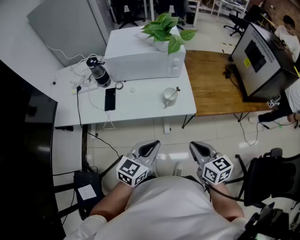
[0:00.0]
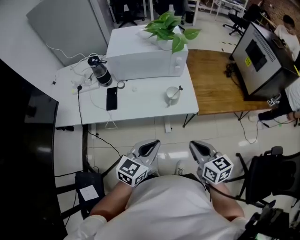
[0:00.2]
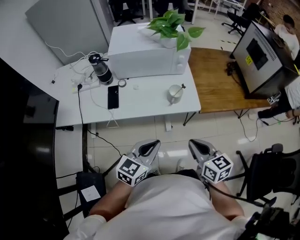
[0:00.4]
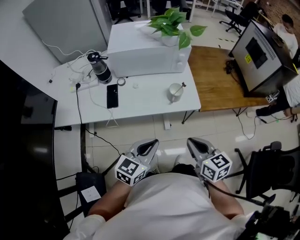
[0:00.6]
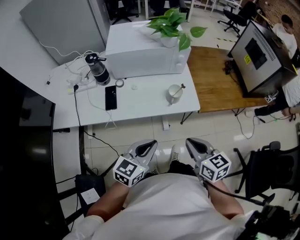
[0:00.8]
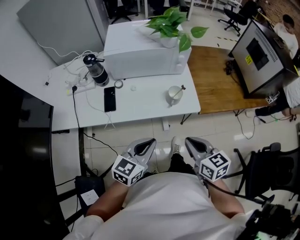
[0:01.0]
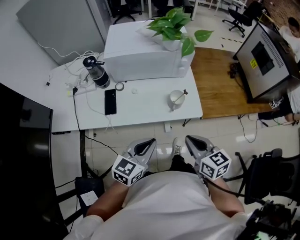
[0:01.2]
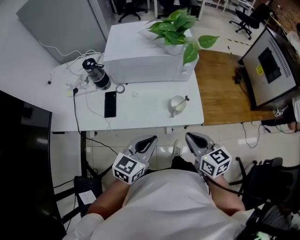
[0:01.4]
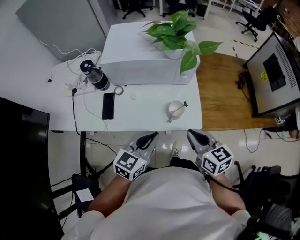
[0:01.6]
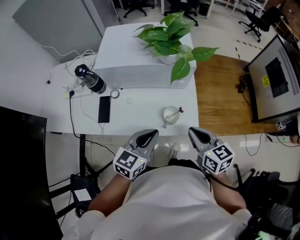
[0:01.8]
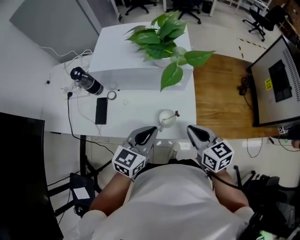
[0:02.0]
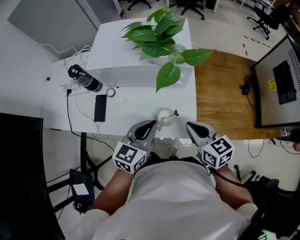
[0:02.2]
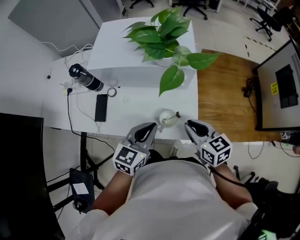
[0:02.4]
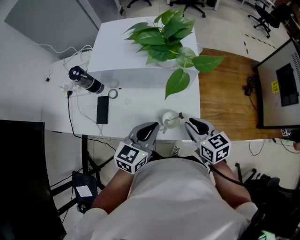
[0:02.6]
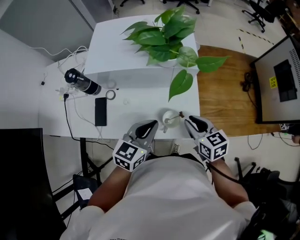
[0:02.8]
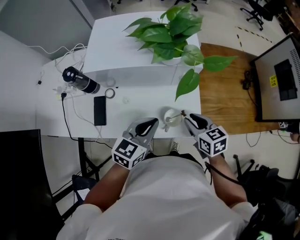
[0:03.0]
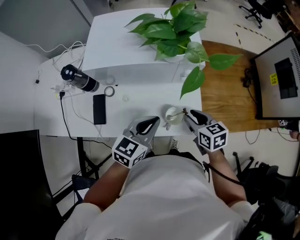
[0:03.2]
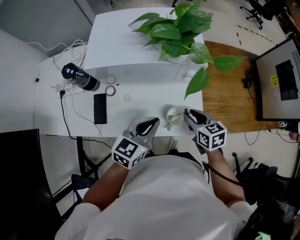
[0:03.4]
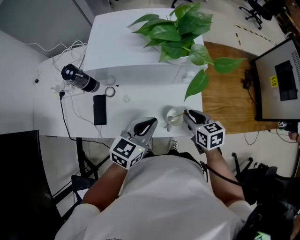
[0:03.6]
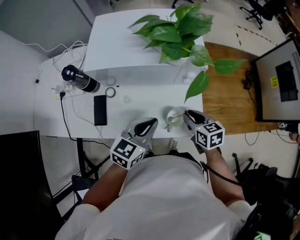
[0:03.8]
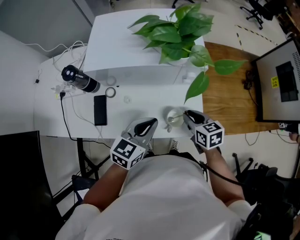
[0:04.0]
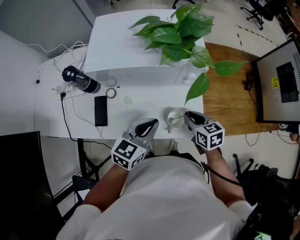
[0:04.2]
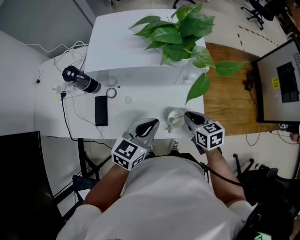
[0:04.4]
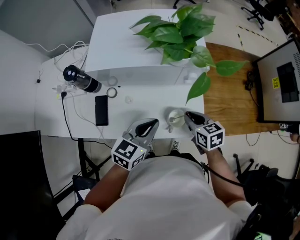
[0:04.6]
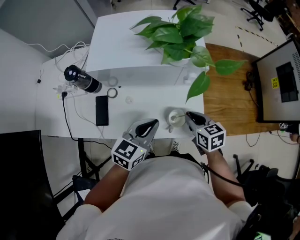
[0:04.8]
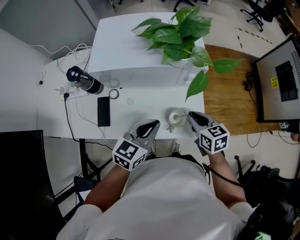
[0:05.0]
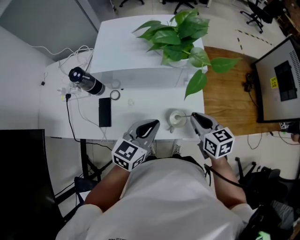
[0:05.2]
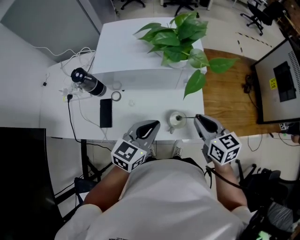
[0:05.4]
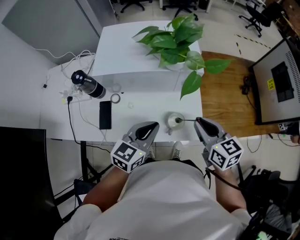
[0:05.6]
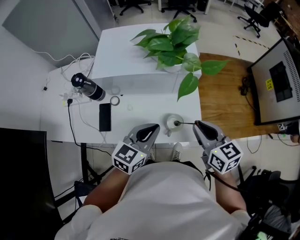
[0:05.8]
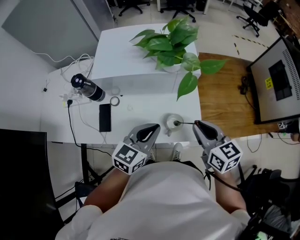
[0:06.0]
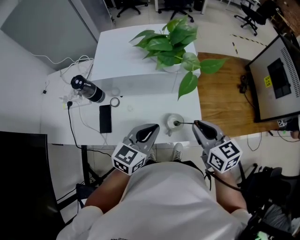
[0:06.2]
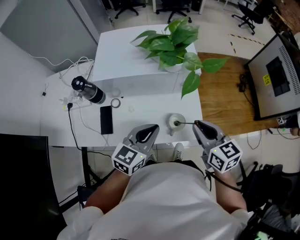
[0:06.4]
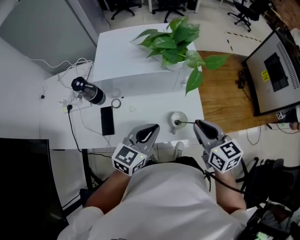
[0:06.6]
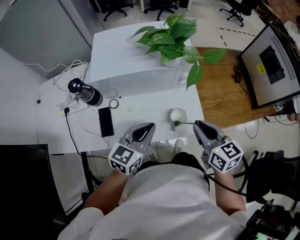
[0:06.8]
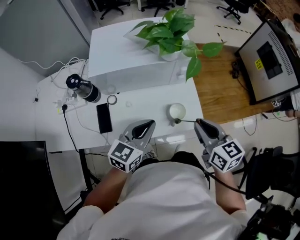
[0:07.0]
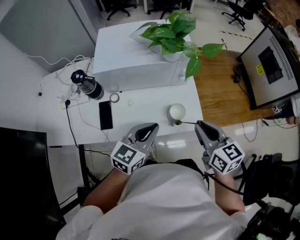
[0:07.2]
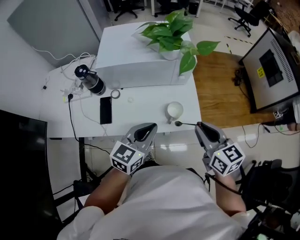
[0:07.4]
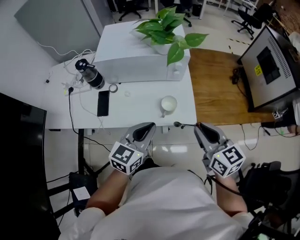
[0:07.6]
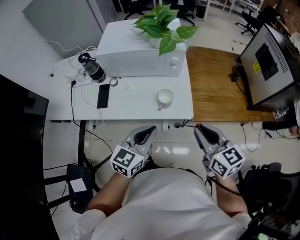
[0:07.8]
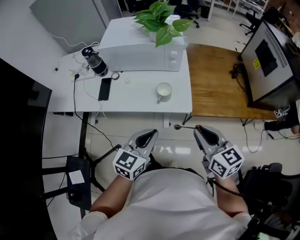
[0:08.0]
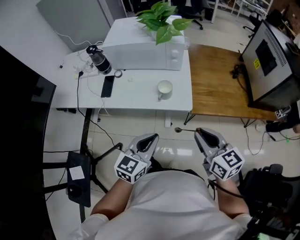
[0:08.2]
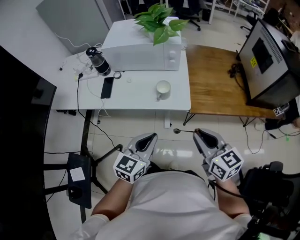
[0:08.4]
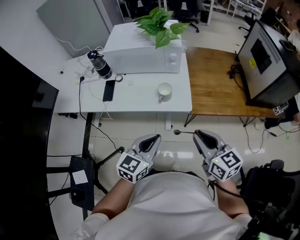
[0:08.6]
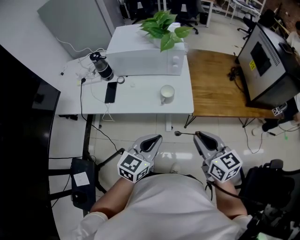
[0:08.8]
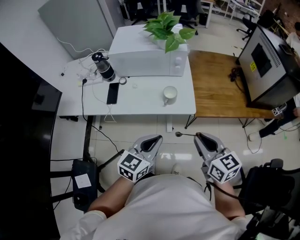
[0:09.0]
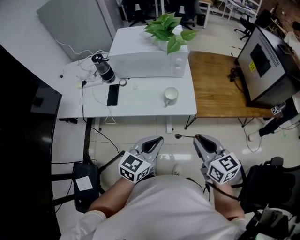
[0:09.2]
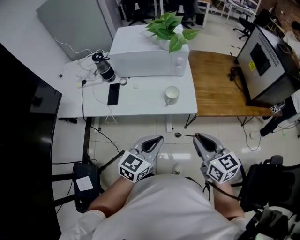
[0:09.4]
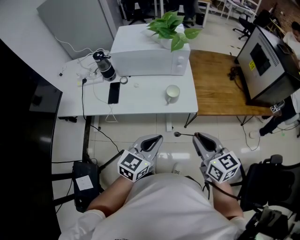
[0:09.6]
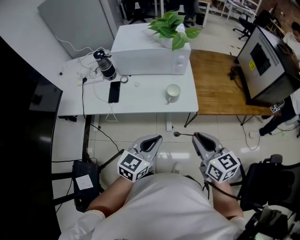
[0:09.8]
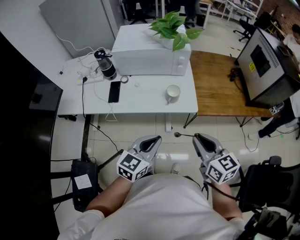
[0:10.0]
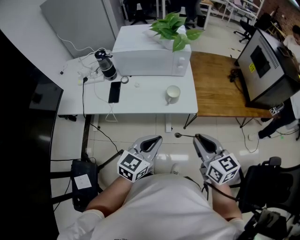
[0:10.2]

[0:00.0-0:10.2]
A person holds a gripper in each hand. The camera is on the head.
0:00.0 to 0:01.4: The left gripper travels forward by some 10 cm, while the right gripper heads forward and to the left, covering approximately 15 cm.
0:01.4 to 0:03.0: The left gripper is displaced forward by roughly 15 cm. The right gripper shifts about 20 cm forward and downward, and opens.
0:03.0 to 0:04.4: The grippers move only a little.
0:04.4 to 0:05.8: The right gripper shifts roughly 15 cm upward.
0:05.8 to 0:07.2: The left gripper changes place by about 5 cm, while the right gripper moves backward, approximately 5 cm.
0:07.2 to 0:08.8: Both grippers travel together backward and to the right, roughly 20 cm.
0:08.8 to 0:10.2: The right gripper changes place by about 5 cm.

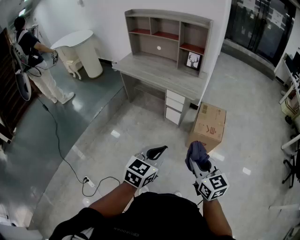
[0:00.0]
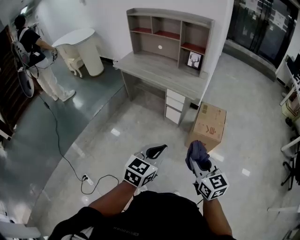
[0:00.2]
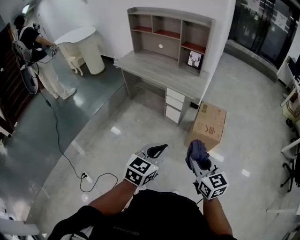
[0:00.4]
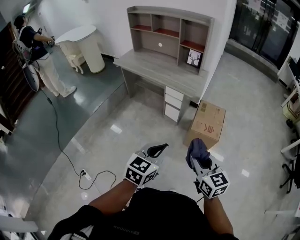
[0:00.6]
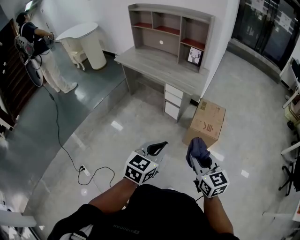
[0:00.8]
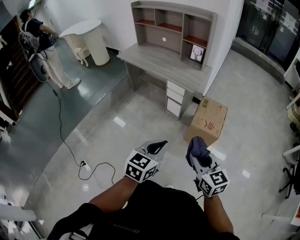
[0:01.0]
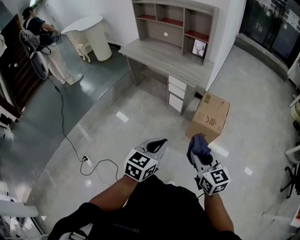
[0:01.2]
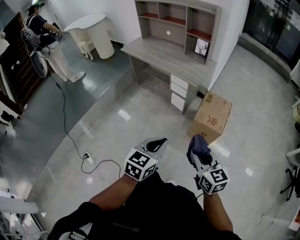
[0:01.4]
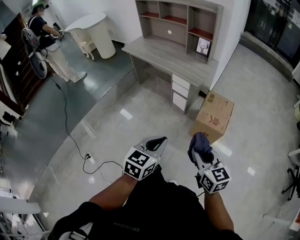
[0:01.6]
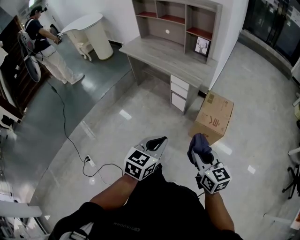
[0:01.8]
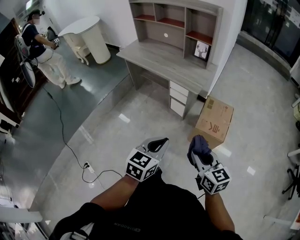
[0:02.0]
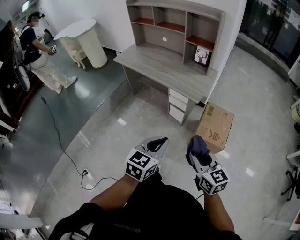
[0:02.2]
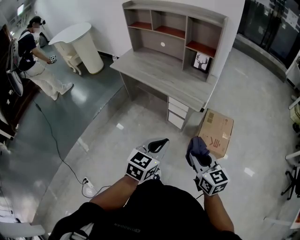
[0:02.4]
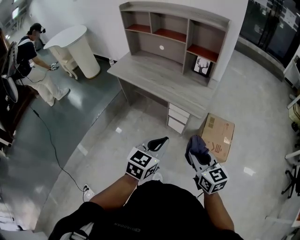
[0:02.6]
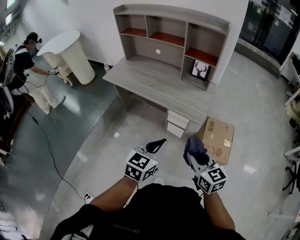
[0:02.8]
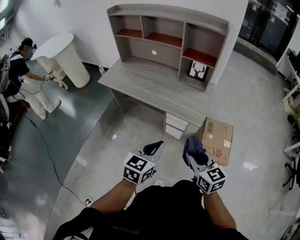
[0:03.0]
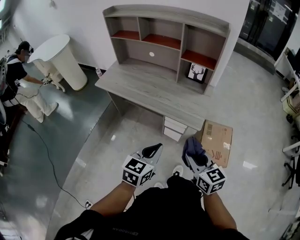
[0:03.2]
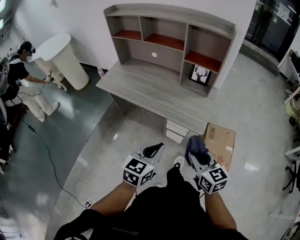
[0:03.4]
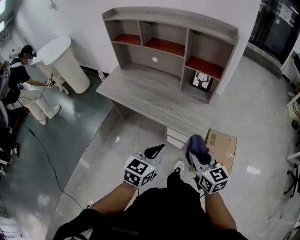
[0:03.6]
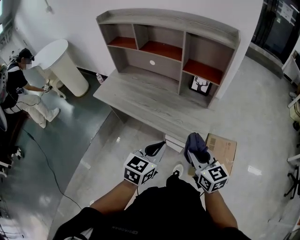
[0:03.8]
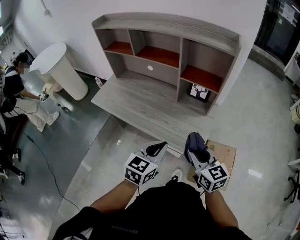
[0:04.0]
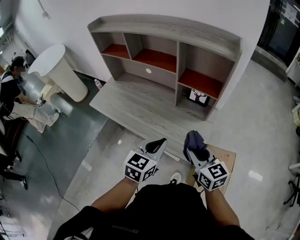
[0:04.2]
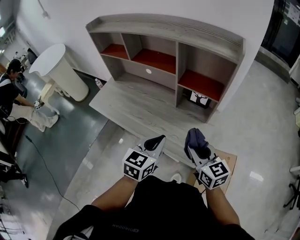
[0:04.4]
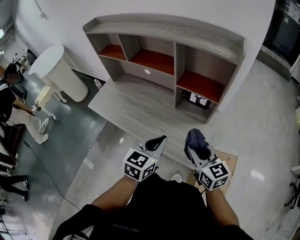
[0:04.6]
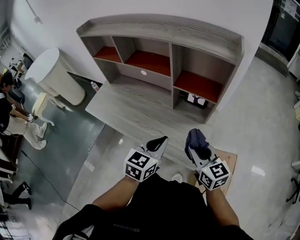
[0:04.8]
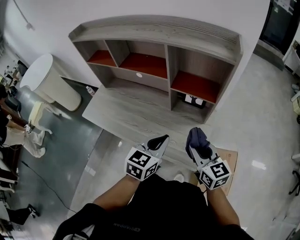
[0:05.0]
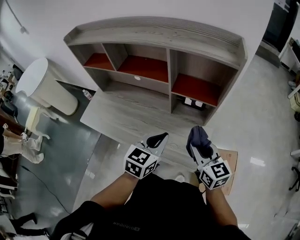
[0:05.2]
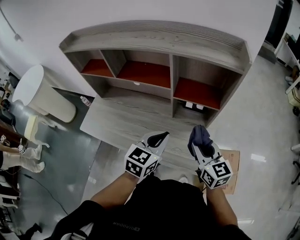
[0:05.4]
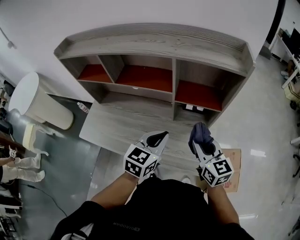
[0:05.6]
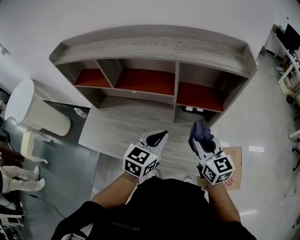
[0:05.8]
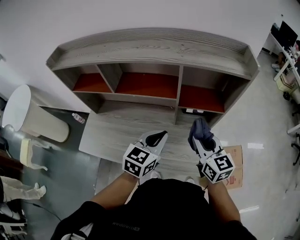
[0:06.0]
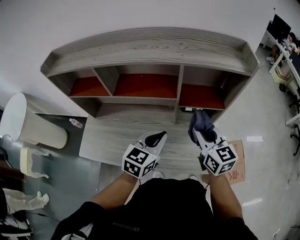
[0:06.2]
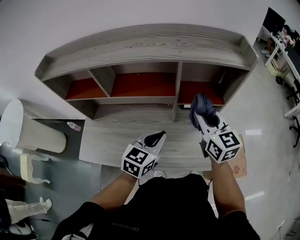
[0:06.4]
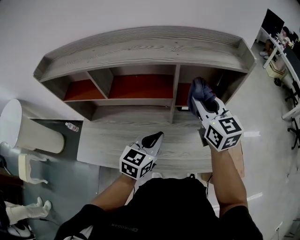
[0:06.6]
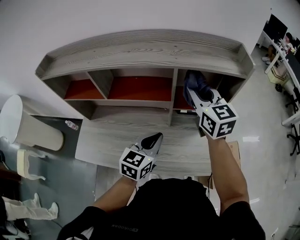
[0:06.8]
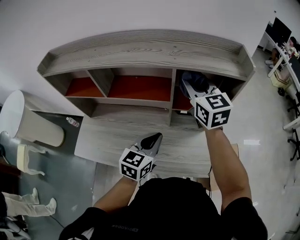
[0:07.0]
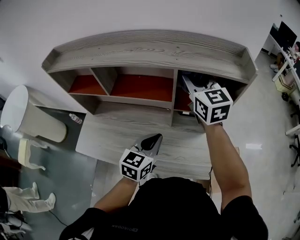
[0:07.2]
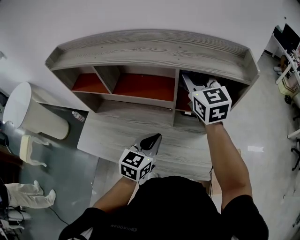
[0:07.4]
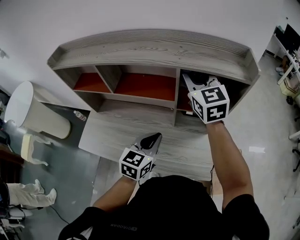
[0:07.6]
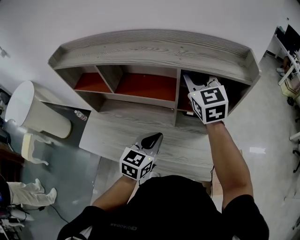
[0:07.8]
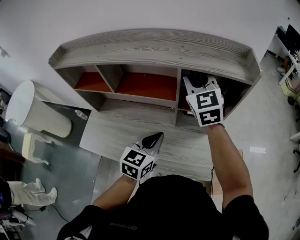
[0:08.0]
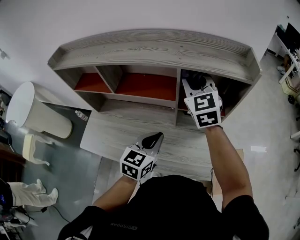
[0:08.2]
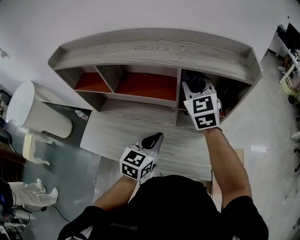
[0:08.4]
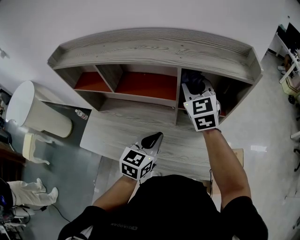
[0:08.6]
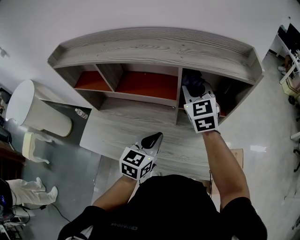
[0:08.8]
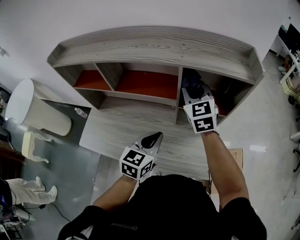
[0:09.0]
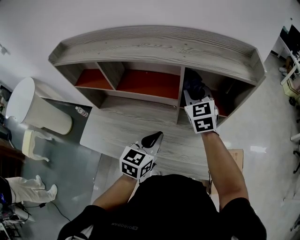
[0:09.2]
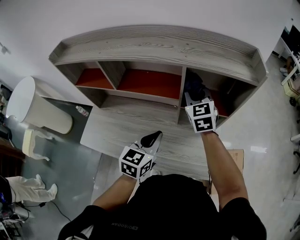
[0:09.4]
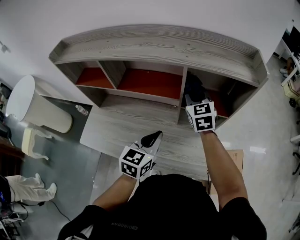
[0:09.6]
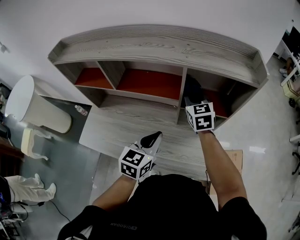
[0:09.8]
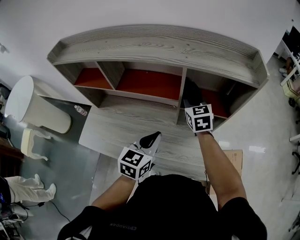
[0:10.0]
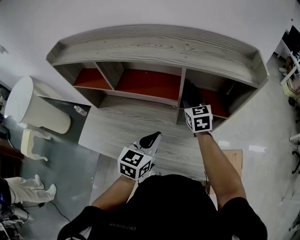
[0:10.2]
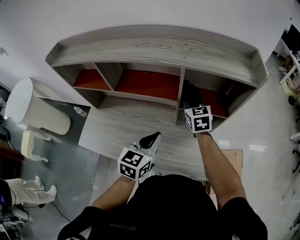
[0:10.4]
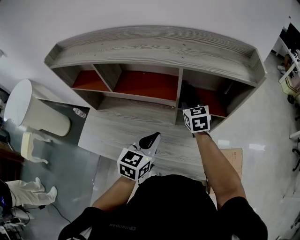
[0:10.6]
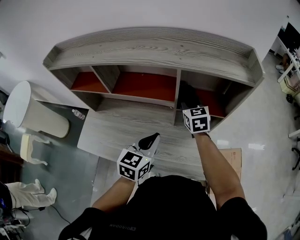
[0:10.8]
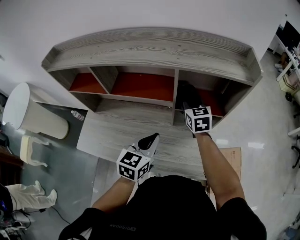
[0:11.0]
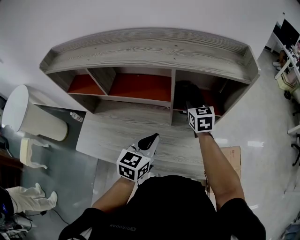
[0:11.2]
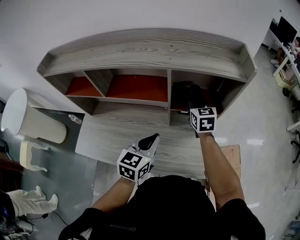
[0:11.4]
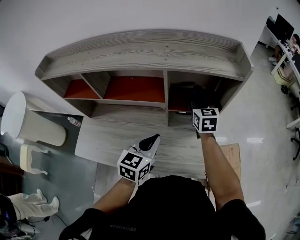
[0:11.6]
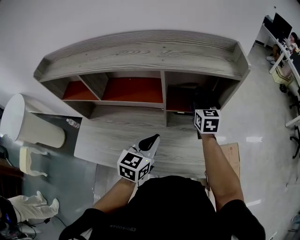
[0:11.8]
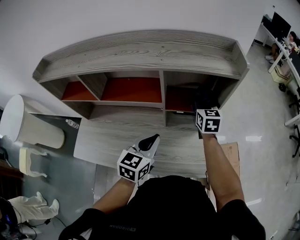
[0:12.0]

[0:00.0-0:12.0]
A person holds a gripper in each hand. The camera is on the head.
0:00.0 to 0:01.6: The grippers both shift to the right by approximately 10 cm.
0:01.6 to 0:03.0: The left gripper moves forward, about 35 cm, while the right gripper heads forward and to the left, covering about 35 cm.
0:03.0 to 0:04.4: Both grippers travel together forward, roughly 30 cm.
0:04.4 to 0:06.0: The two grippers go approximately 20 cm forward and to the left. The left gripper swivels some 20 degrees. The right gripper rotates about 20 degrees.
0:06.0 to 0:07.6: The right gripper heads forward and upward, covering about 25 cm, and changes its angle by some 20 degrees.
0:07.6 to 0:09.0: The right gripper heads downward, covering roughly 10 cm.
0:09.0 to 0:10.4: The right gripper shifts about 10 cm downward.
0:10.4 to 0:12.0: The right gripper heads to the right, covering about 15 cm.

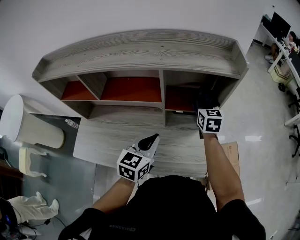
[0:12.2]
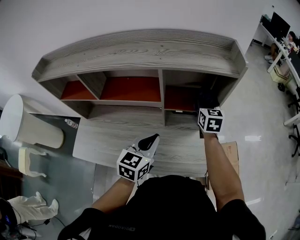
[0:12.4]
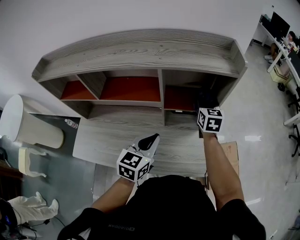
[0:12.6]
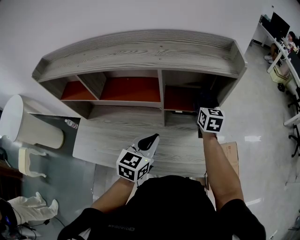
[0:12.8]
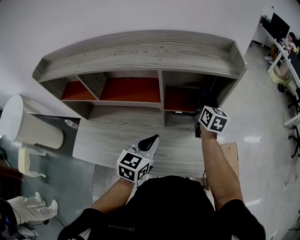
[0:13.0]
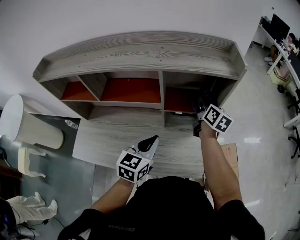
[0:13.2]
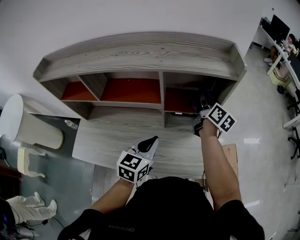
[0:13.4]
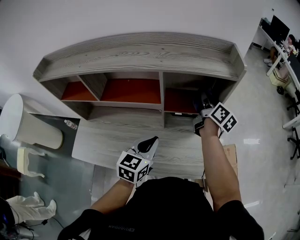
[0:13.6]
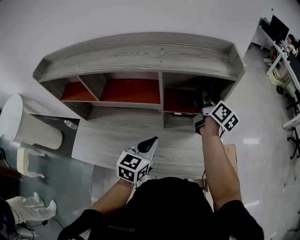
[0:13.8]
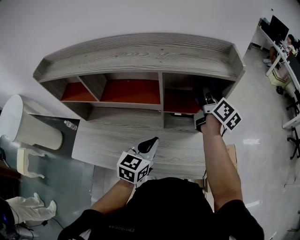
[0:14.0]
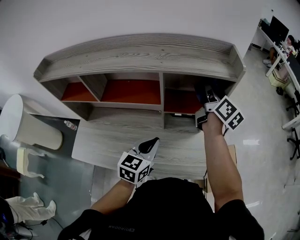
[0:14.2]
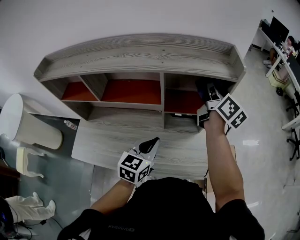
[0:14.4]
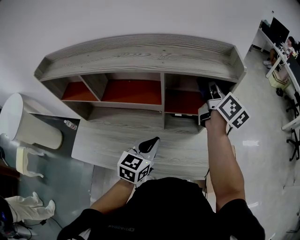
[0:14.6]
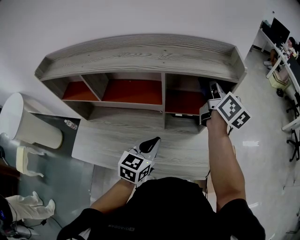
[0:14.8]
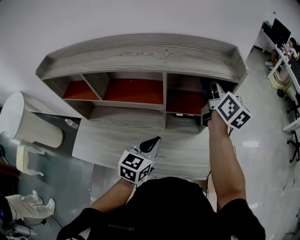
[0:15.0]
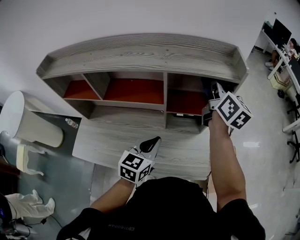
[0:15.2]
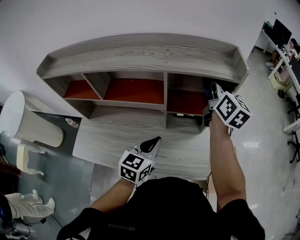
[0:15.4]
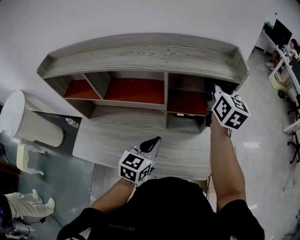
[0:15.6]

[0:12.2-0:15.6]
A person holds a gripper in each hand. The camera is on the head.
0:12.2 to 0:13.8: The right gripper is displaced upward by approximately 5 cm, and rotates around the line of its fingers by roughly 50 degrees, clockwise from behind.
0:13.8 to 0:15.6: The right gripper travels upward by roughly 10 cm, and changes its angle by some 30 degrees.
